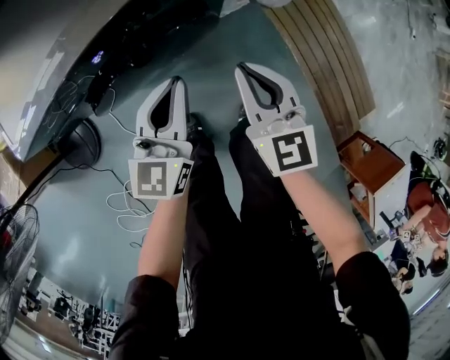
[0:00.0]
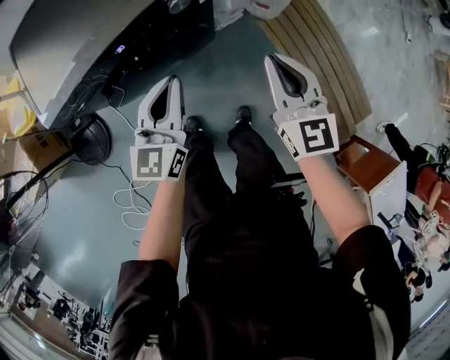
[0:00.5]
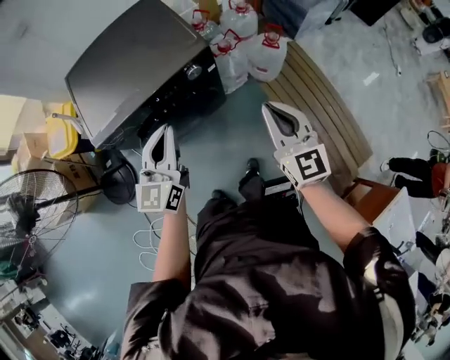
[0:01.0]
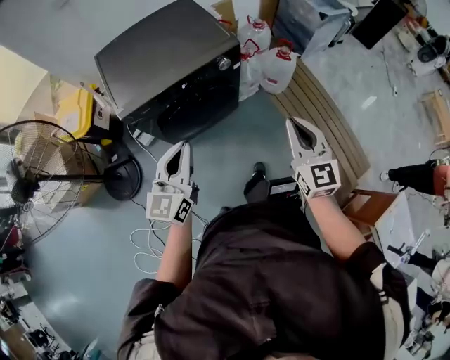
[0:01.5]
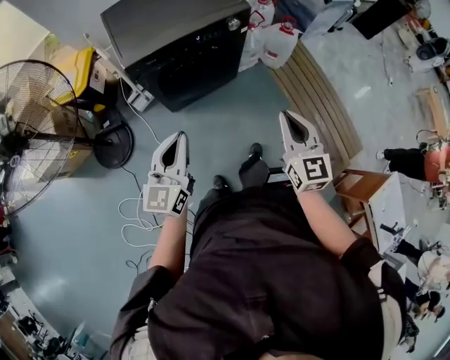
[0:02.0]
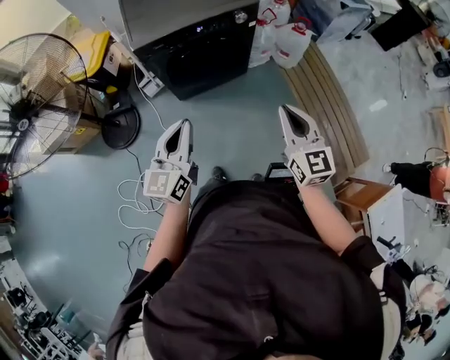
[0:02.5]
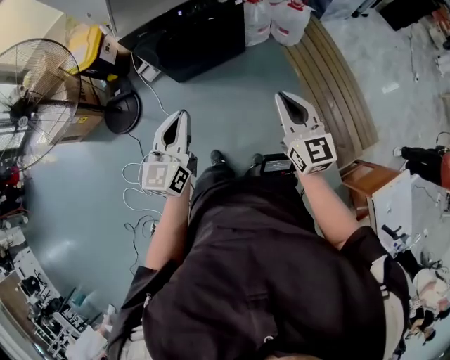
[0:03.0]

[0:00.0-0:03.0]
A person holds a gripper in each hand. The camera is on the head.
0:00.0 to 0:01.5: Both grippers move upward and backward, some 35 cm.
0:01.5 to 0:03.0: Both grippers move backward, approximately 20 cm.

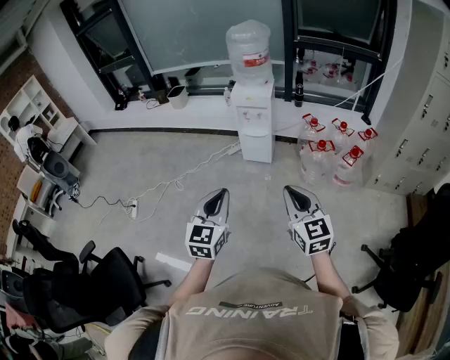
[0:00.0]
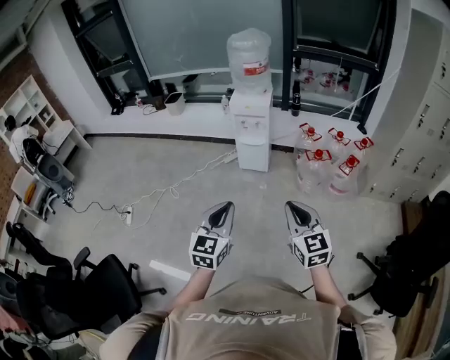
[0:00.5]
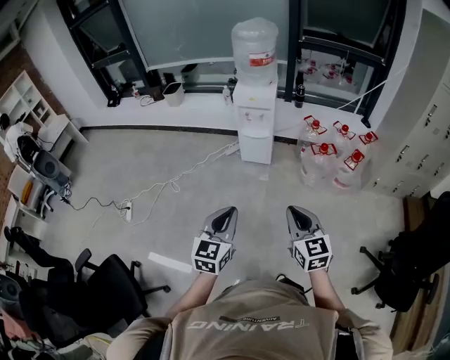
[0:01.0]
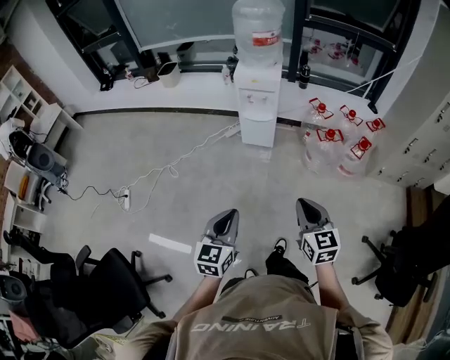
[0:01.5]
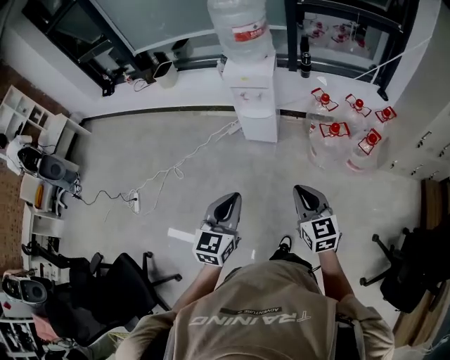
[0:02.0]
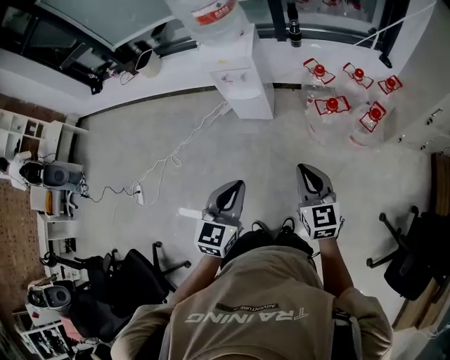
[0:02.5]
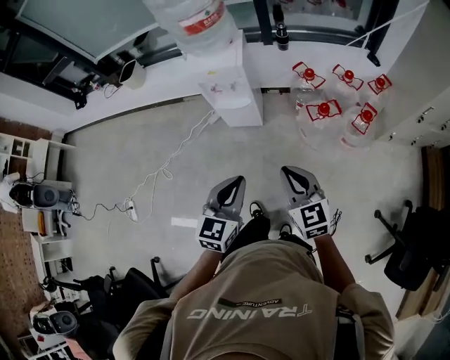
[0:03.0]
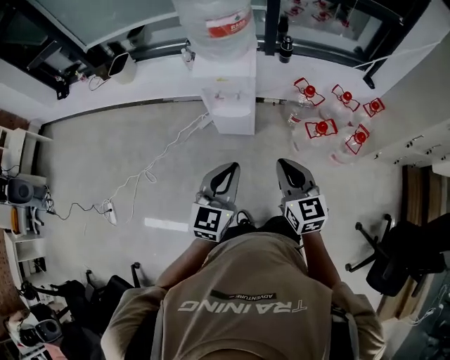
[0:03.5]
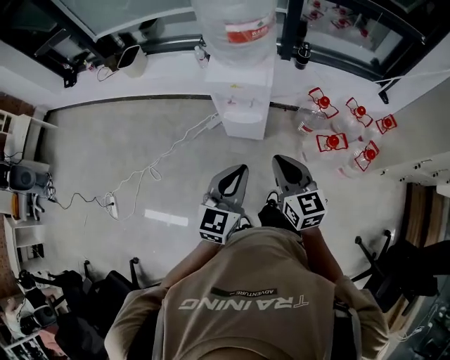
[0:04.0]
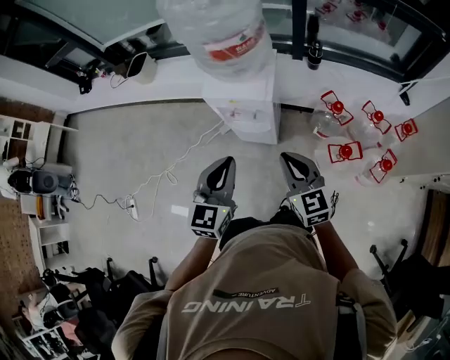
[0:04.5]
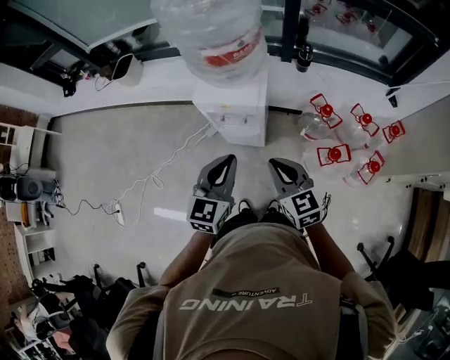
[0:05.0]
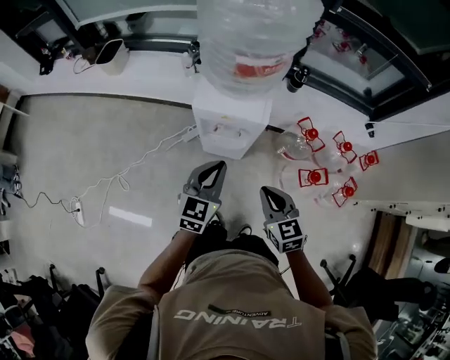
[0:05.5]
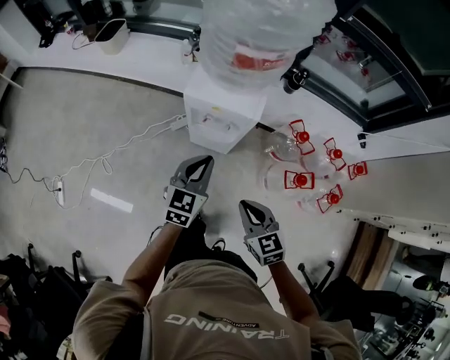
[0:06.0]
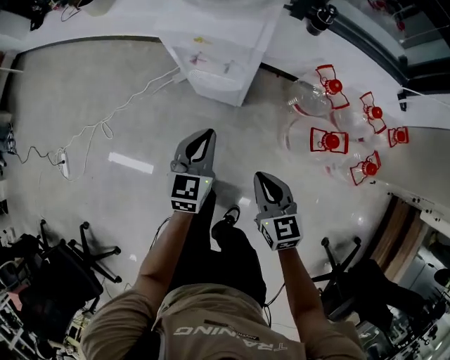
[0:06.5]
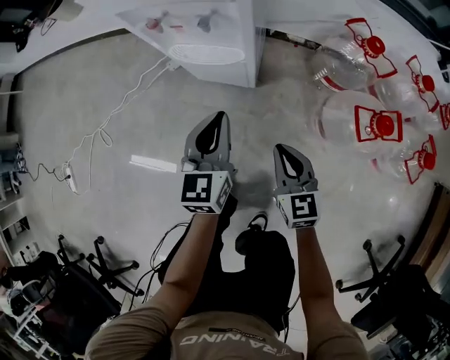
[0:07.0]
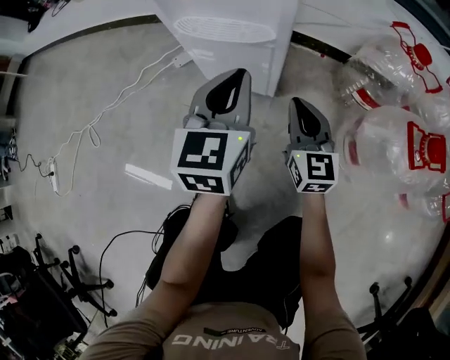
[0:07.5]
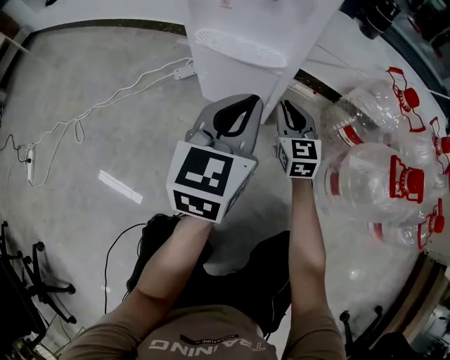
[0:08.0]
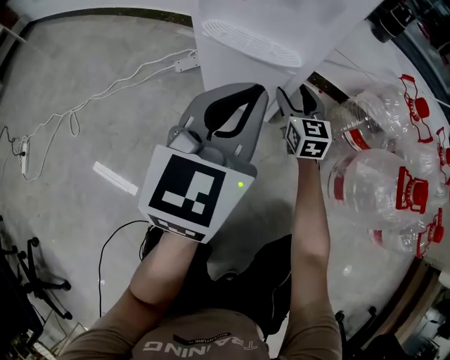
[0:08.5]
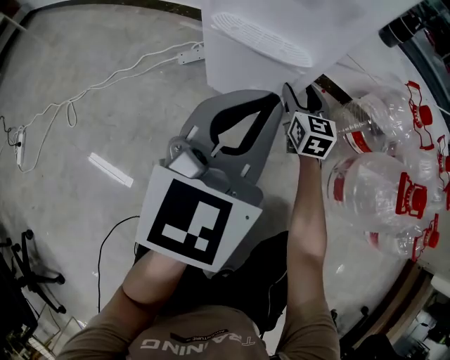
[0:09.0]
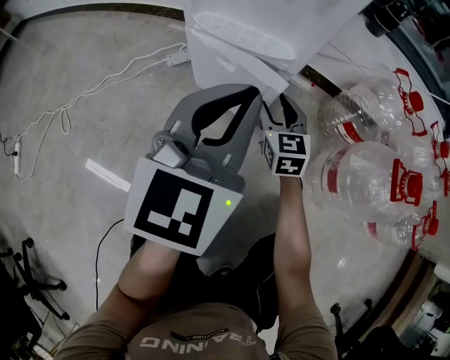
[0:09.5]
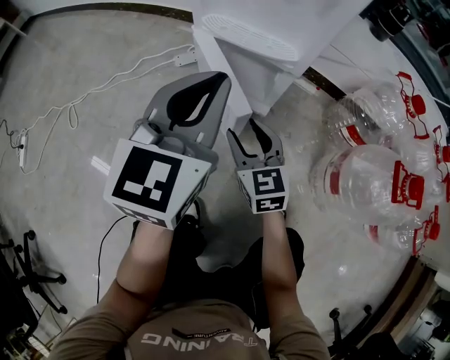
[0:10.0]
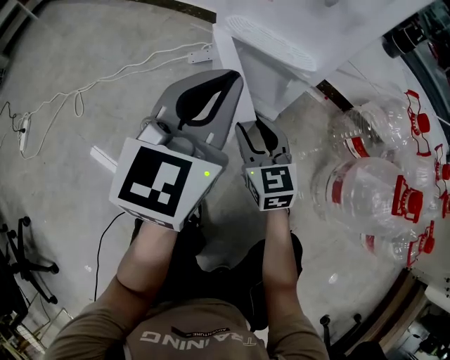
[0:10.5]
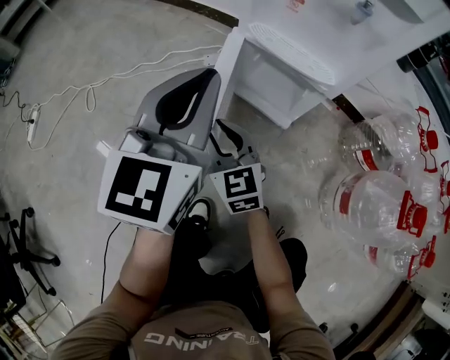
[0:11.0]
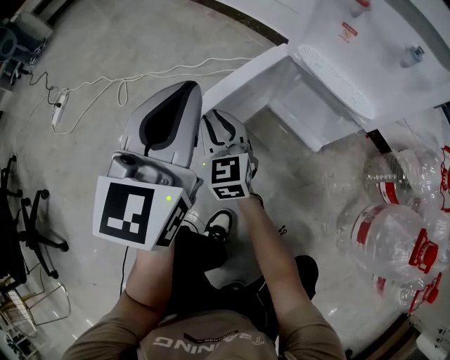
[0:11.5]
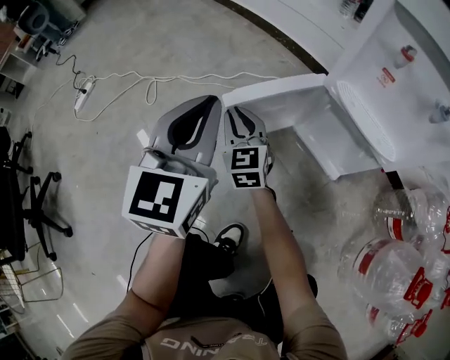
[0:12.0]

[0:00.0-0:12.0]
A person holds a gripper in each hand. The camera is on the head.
0:00.0 to 0:02.0: The two grippers go approximately 20 cm forward and downward.
0:02.0 to 0:04.0: Both grippers move forward, approximately 30 cm.
0:04.0 to 0:06.0: The left gripper moves forward and downward, roughly 20 cm. The right gripper is displaced downward and forward by about 15 cm, and rotates approximately 20 degrees.
0:06.0 to 0:08.0: The right gripper is displaced downward and forward by about 60 cm, and swivels approximately 20 degrees; the left gripper shifts roughly 40 cm downward.
0:08.0 to 0:10.0: The right gripper goes about 15 cm to the left and backward, and opens up. The left gripper goes about 5 cm to the left.
0:10.0 to 0:12.0: The right gripper shifts about 30 cm to the left and forward, swivels roughly 20 degrees, and closes. The left gripper moves to the left, approximately 25 cm, and swivels some 30 degrees.

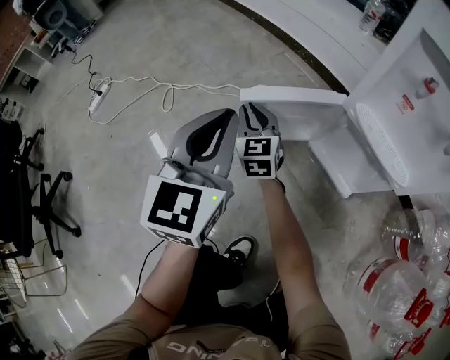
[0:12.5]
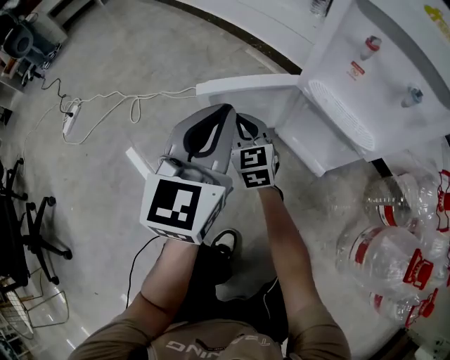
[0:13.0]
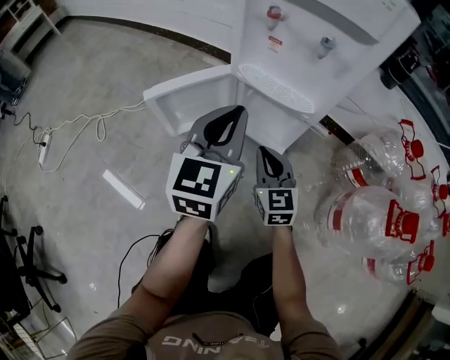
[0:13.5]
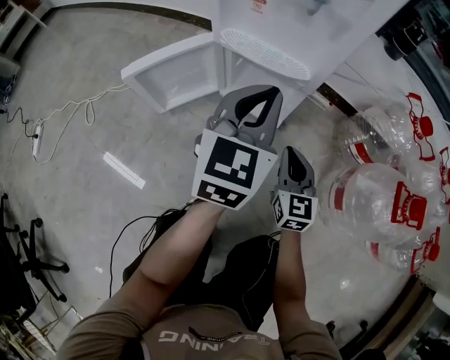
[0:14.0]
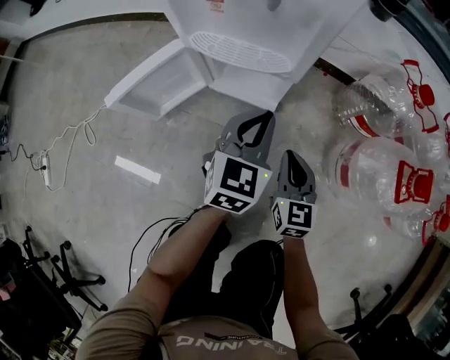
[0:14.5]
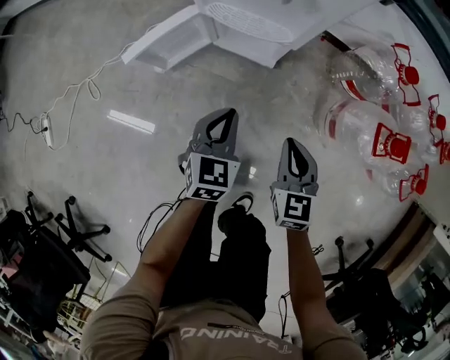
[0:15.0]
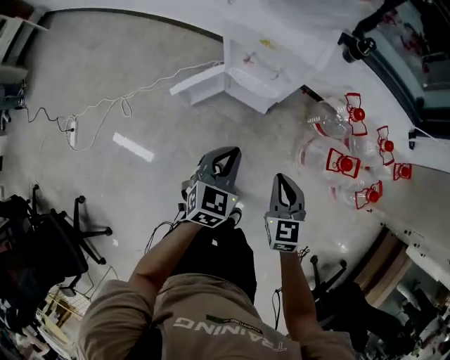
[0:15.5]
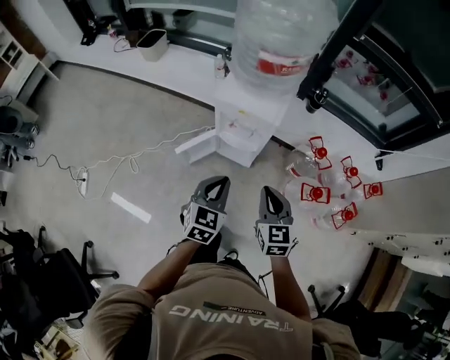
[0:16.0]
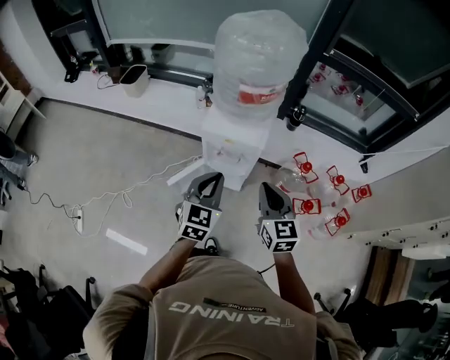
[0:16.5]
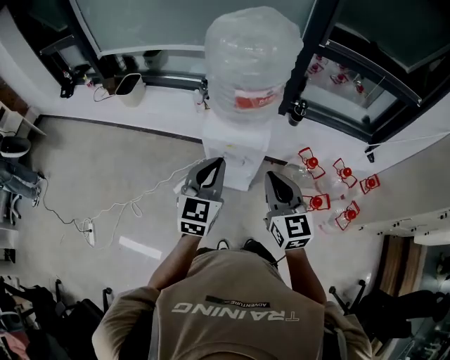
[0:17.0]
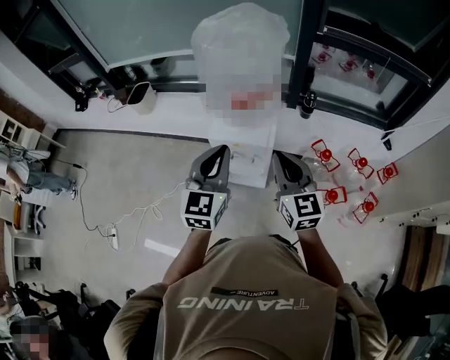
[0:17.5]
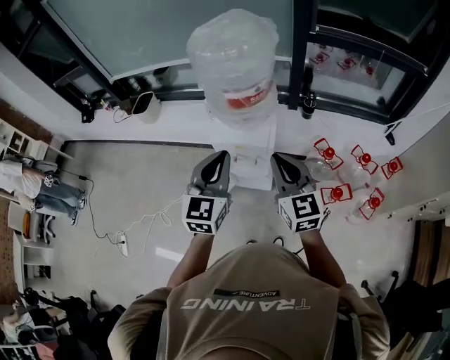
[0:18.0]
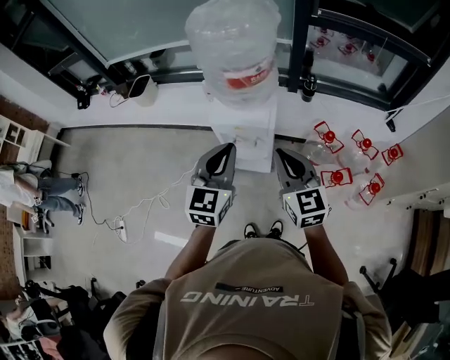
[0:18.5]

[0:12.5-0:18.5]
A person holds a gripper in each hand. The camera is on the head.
0:12.5 to 0:14.5: The left gripper changes place by about 40 cm, and swivels some 40 degrees. The right gripper changes place by approximately 50 cm, and rotates approximately 50 degrees.
0:14.5 to 0:16.5: Both grippers move upward, about 60 cm.
0:16.5 to 0:18.5: The two grippers go roughly 10 cm upward.

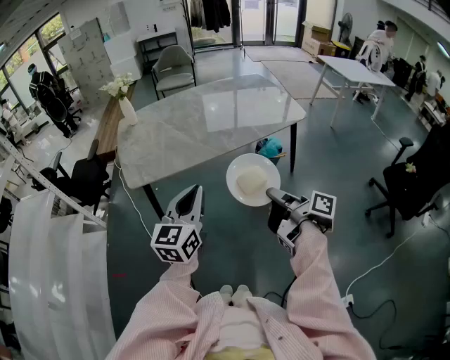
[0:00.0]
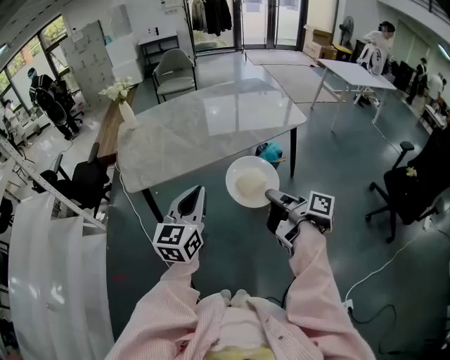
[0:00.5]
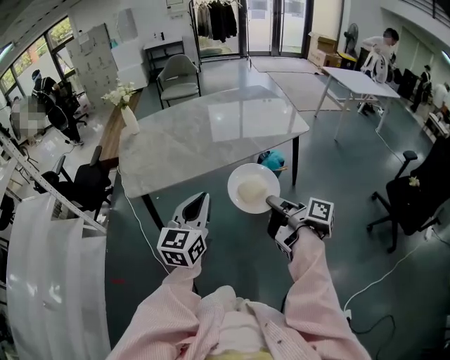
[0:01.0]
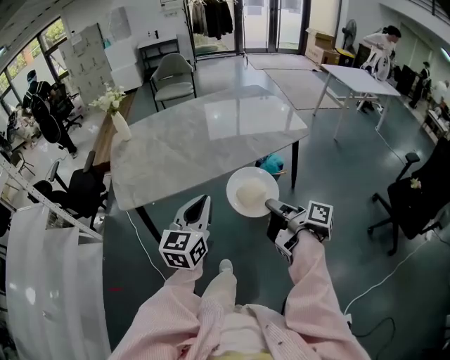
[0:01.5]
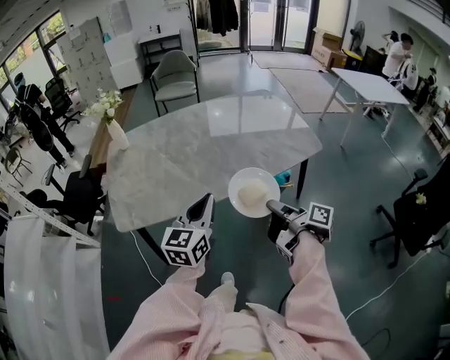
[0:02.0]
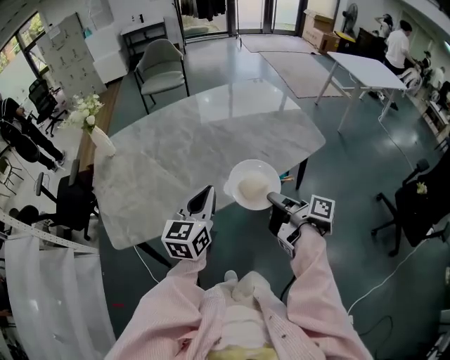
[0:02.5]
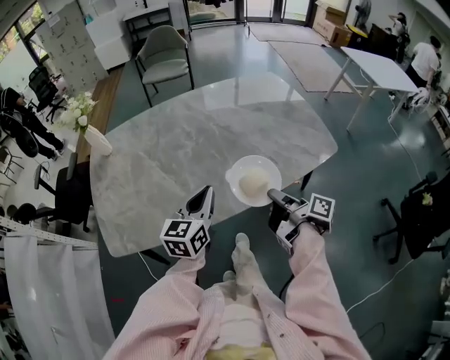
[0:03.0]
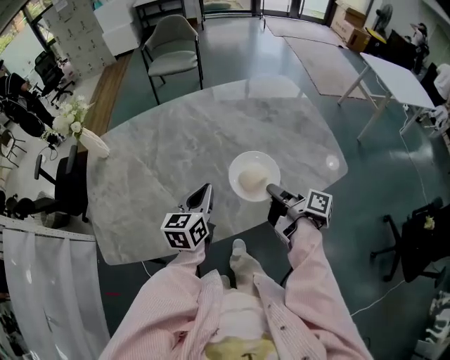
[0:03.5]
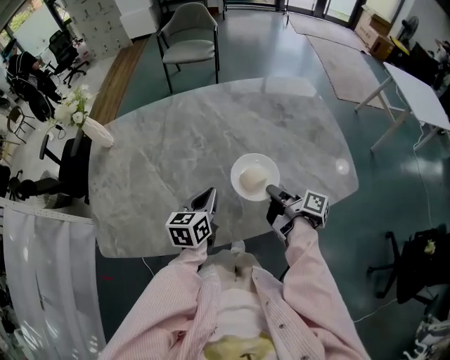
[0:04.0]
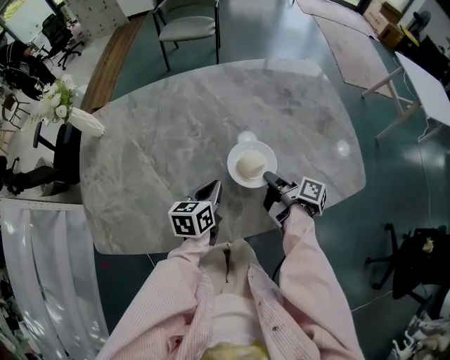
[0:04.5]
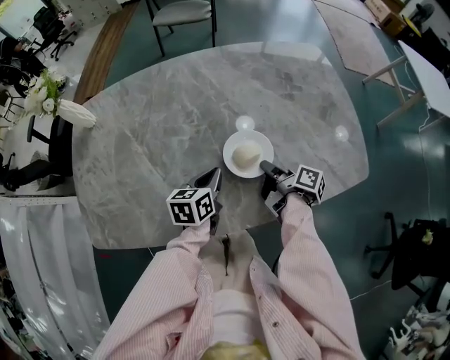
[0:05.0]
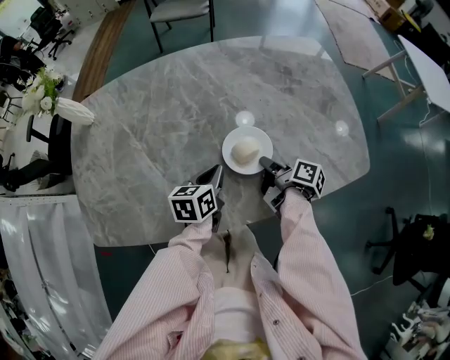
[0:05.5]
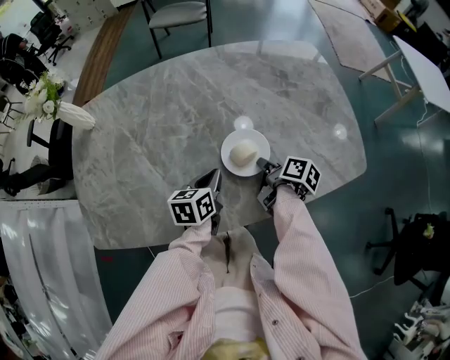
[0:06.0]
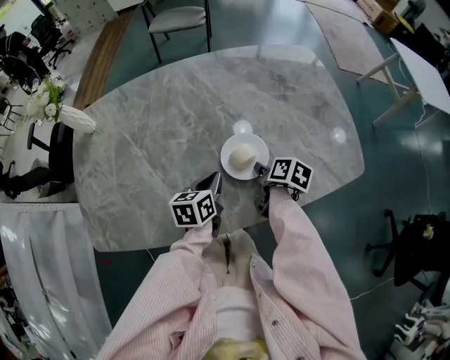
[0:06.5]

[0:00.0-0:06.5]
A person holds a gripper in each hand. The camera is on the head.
0:00.0 to 0:02.0: The left gripper shifts by about 25 cm.
0:02.0 to 0:04.5: The left gripper ends up about 40 cm from where it was, and swivels approximately 40 degrees.
